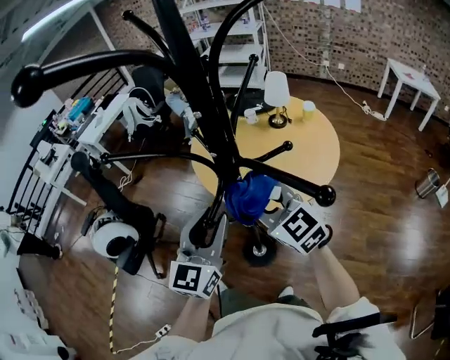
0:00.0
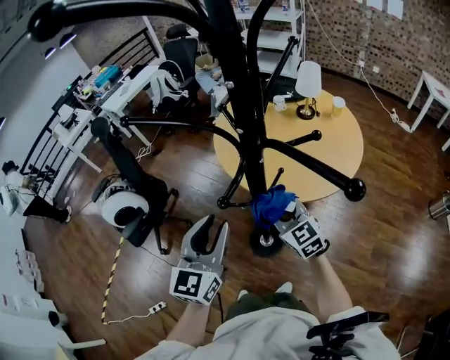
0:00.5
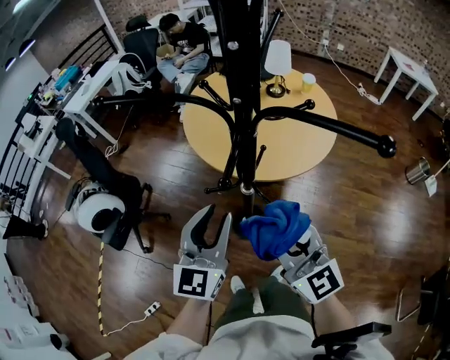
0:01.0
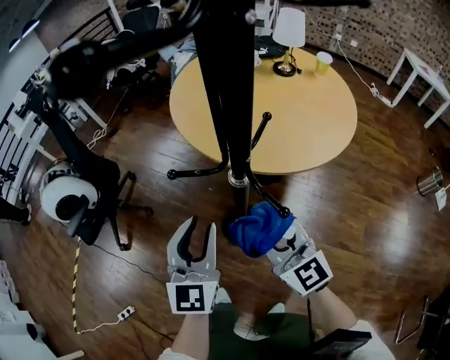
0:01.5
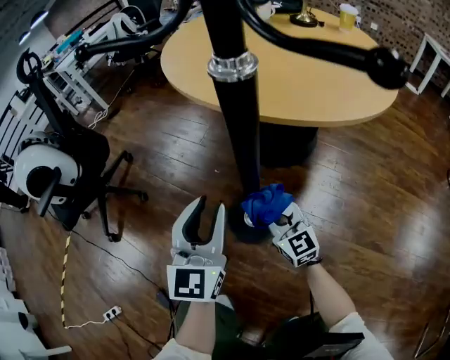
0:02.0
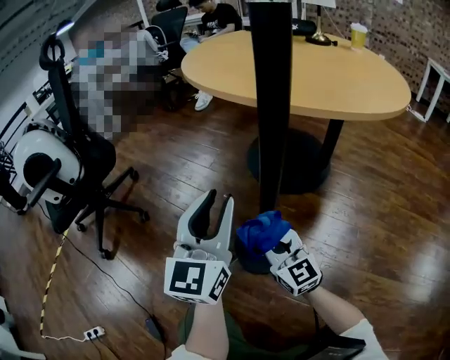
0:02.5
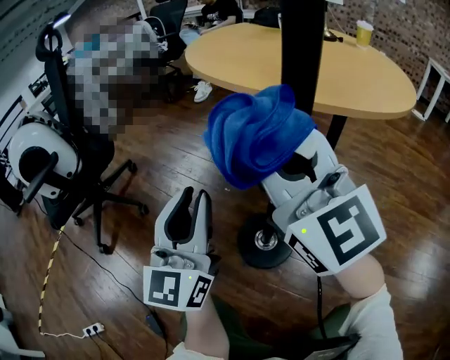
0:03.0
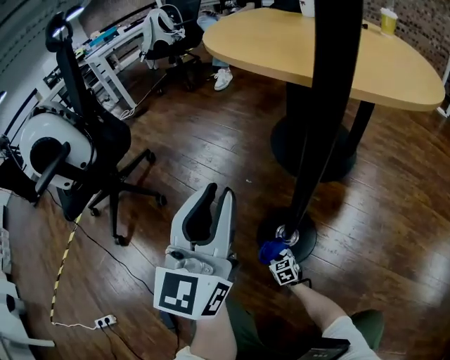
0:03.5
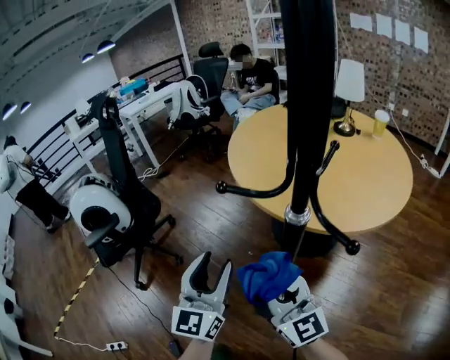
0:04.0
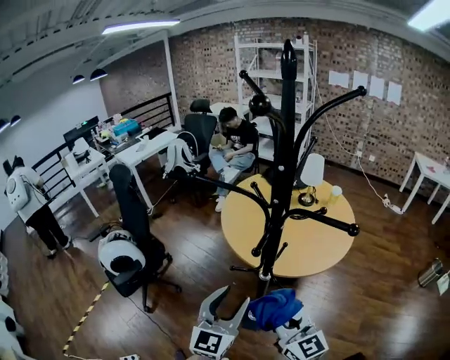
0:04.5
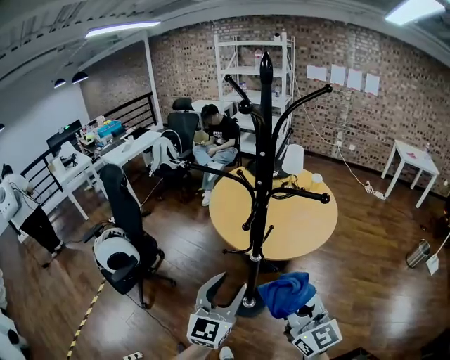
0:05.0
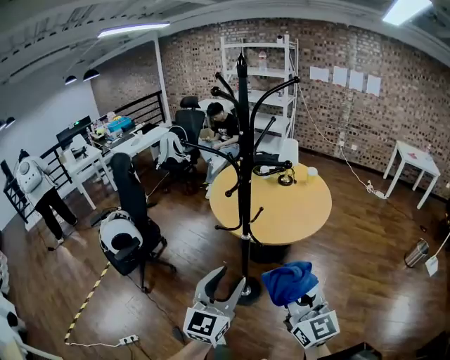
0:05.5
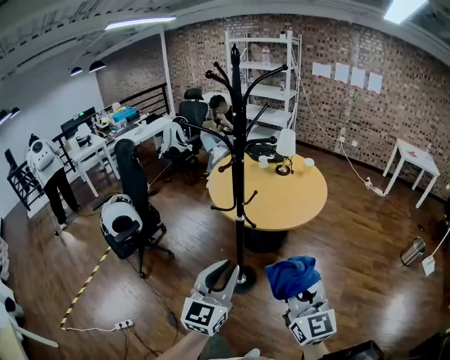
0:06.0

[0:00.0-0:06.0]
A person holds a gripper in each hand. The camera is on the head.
0:00.0 to 0:02.0: The right gripper goes up and down, about 70 cm each way, reversing 2 times. Meanwhile the left gripper goes about 50 cm downward.
0:02.0 to 0:04.0: The left gripper moves upward and to the left, roughly 15 cm. Meanwhile the right gripper swings up and down, roughly 80 cm each way, with 3 reversals, and changes its angle by roughly 20 degrees.
0:04.0 to 0:06.0: The two grippers go roughly 60 cm upward, backward and to the right. The right gripper swivels some 20 degrees. Meanwhile the left gripper closes.

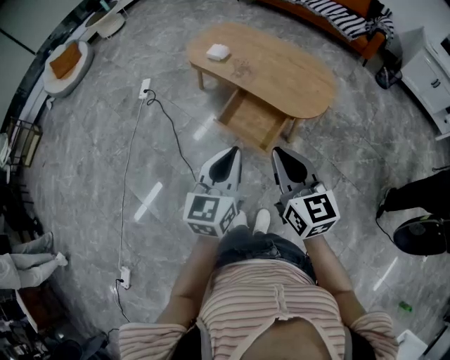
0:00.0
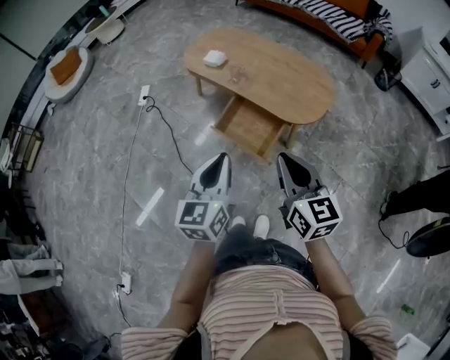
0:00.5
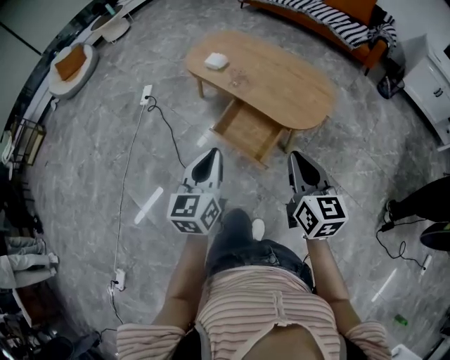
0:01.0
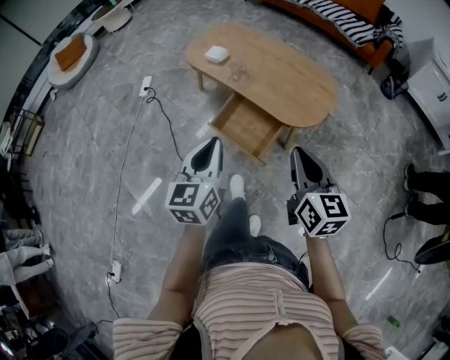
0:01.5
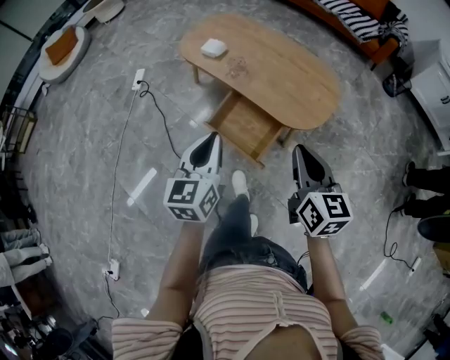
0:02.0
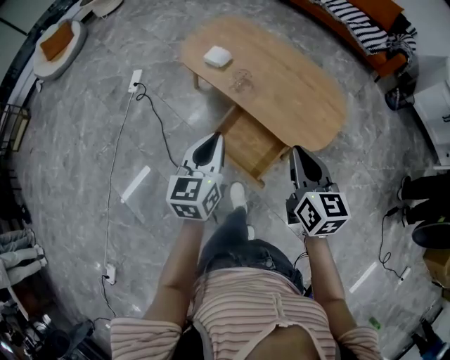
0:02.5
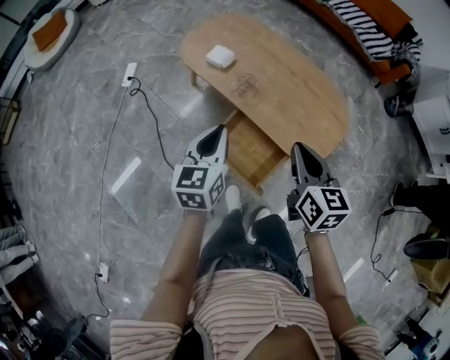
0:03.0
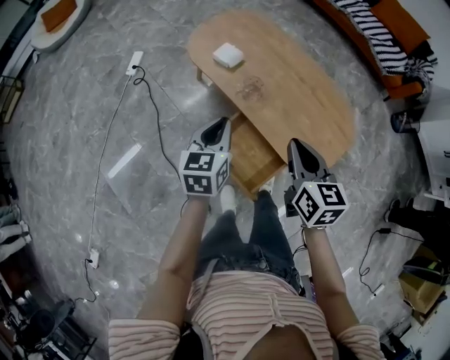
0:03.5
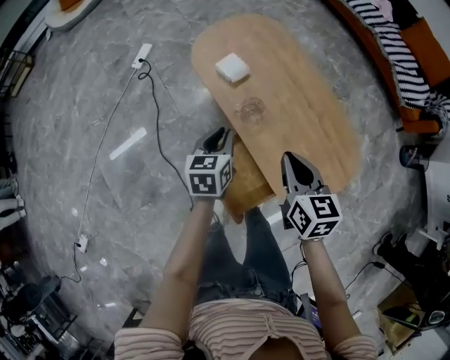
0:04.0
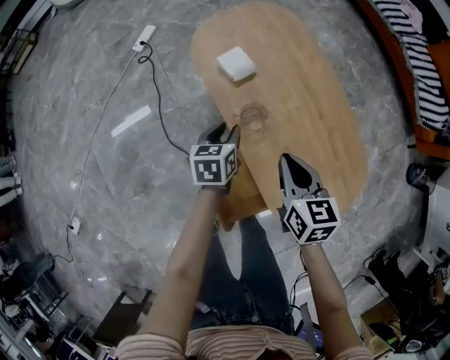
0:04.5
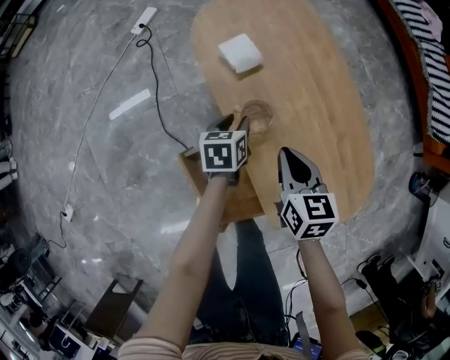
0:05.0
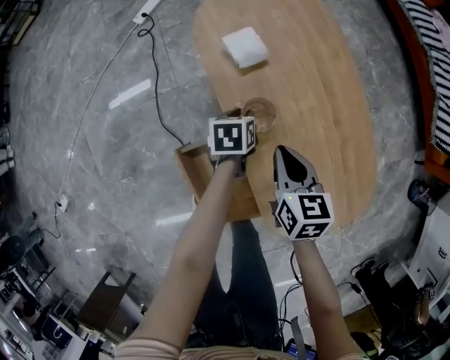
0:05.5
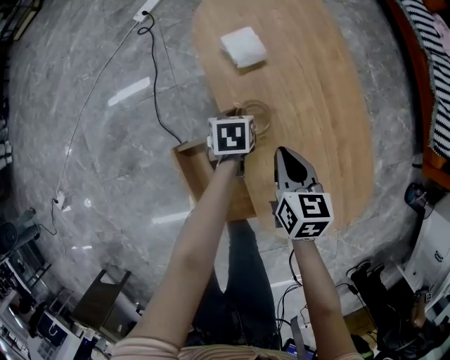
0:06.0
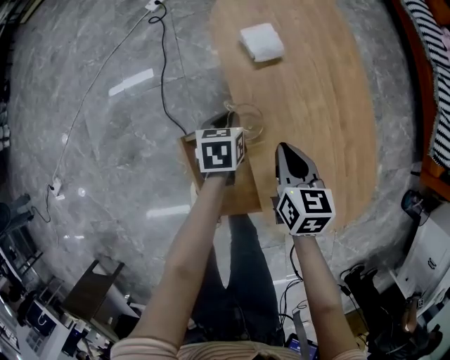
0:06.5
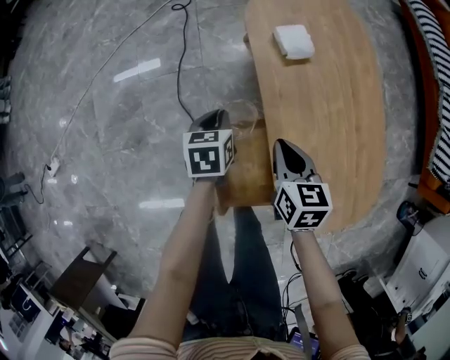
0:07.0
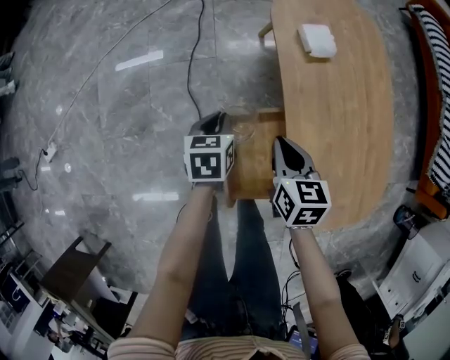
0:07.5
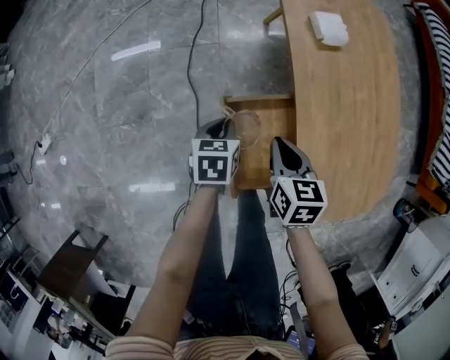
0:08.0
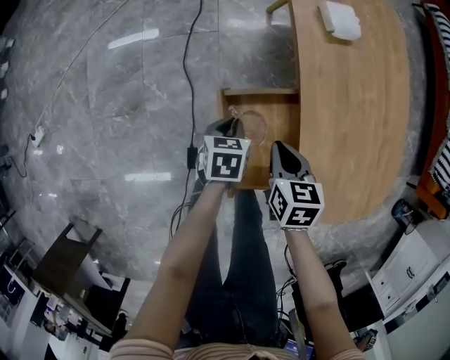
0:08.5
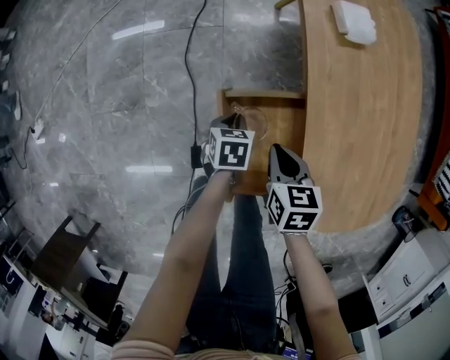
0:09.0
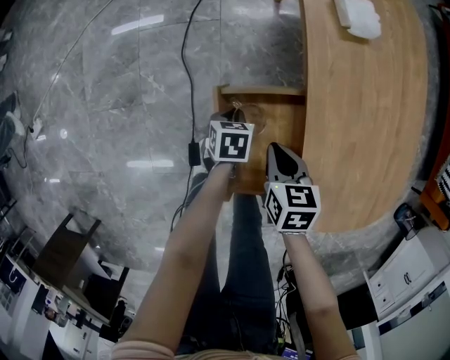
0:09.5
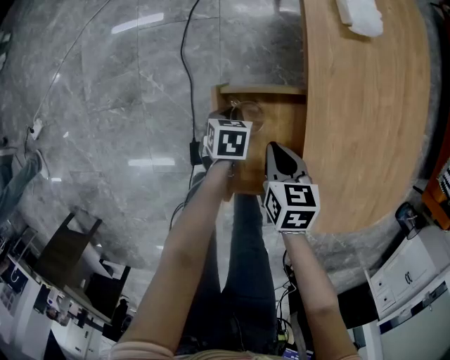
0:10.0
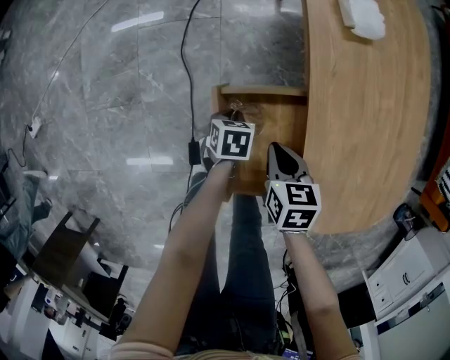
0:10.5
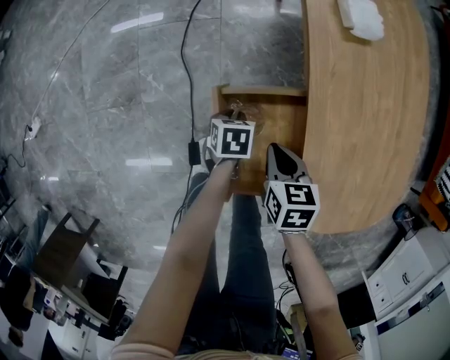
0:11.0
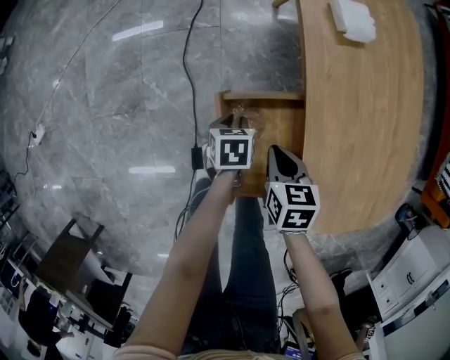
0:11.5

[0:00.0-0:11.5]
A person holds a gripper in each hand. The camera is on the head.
0:00.0 to 0:02.0: The right gripper heads forward and to the right, covering approximately 15 cm; the left gripper moves forward, roughly 15 cm.
0:02.0 to 0:04.0: The right gripper shifts about 35 cm forward, and rotates roughly 30 degrees. Meanwhile the left gripper goes roughly 40 cm forward and downward, and turns by approximately 30 degrees.
0:04.0 to 0:06.0: Both grippers travel together downward and forward, about 25 cm. The left gripper swivels approximately 30 degrees.
0:06.0 to 0:07.5: The left gripper heads to the left and backward, covering about 25 cm, while the right gripper is displaced to the left by approximately 20 cm.
0:07.5 to 0:09.5: The two grippers go approximately 15 cm downward.
0:09.5 to 0:11.5: The grippers stay close to where they were, moving slightly.

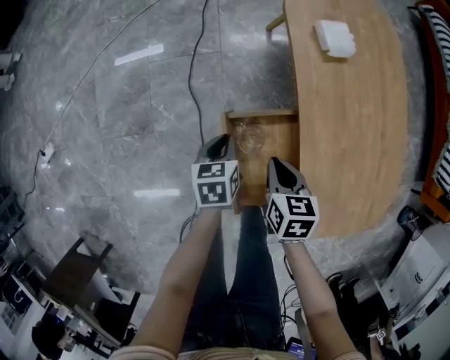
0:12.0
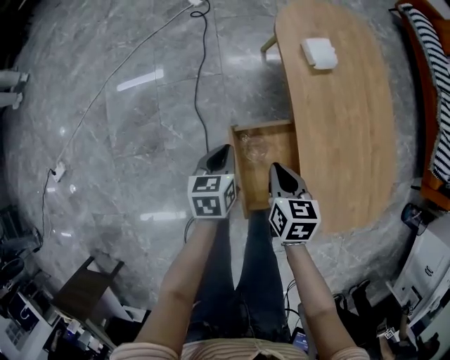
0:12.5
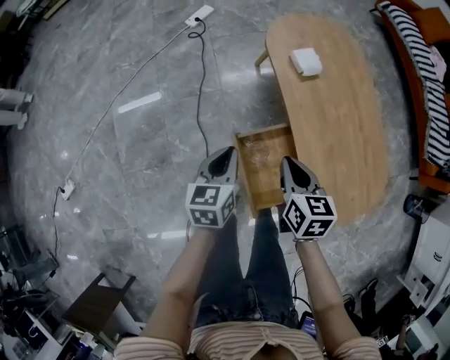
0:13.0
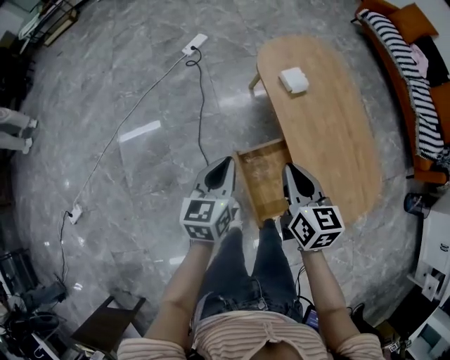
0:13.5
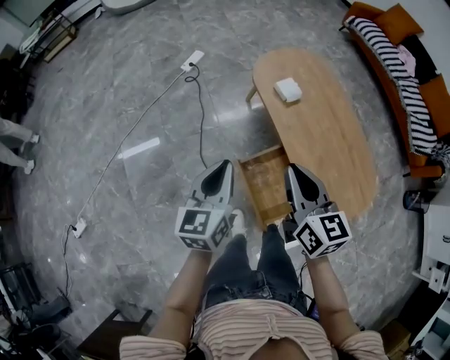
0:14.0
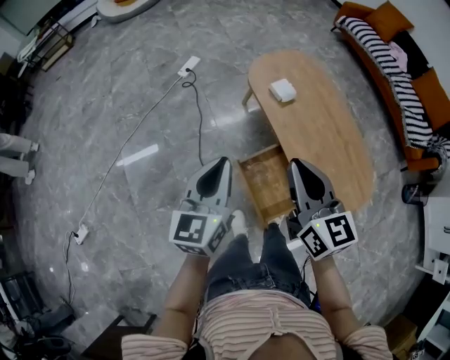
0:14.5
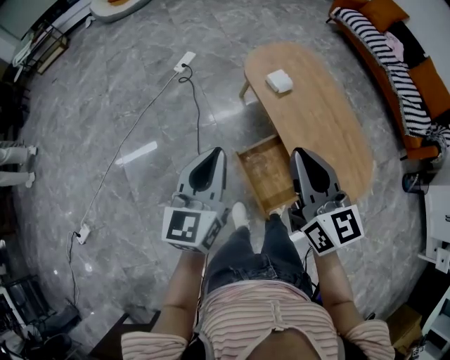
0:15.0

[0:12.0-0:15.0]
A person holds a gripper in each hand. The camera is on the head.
0:12.0 to 0:13.5: Both grippers travel together upward, about 30 cm. The right gripper turns by some 30 degrees; the left gripper swivels approximately 30 degrees.
0:13.5 to 0:15.0: The grippers both shift upward by some 15 cm. The left gripper changes its angle by about 20 degrees, while the right gripper changes its angle by roughly 20 degrees.

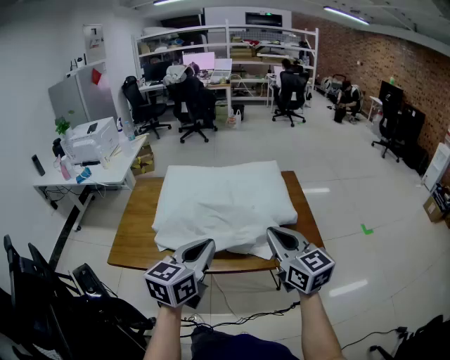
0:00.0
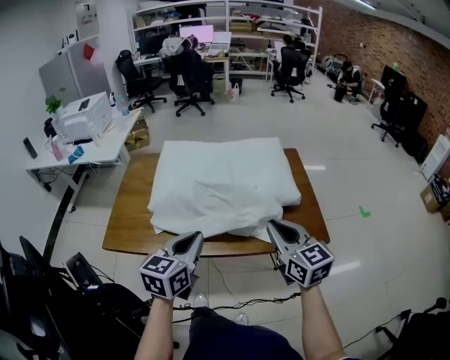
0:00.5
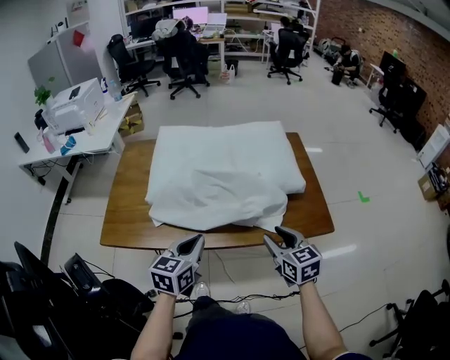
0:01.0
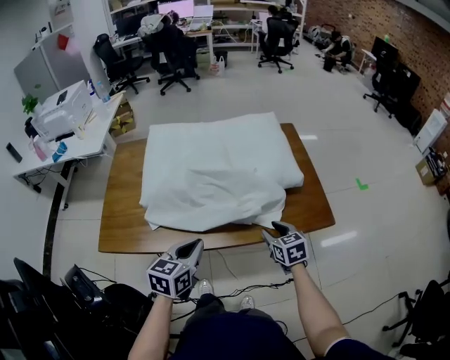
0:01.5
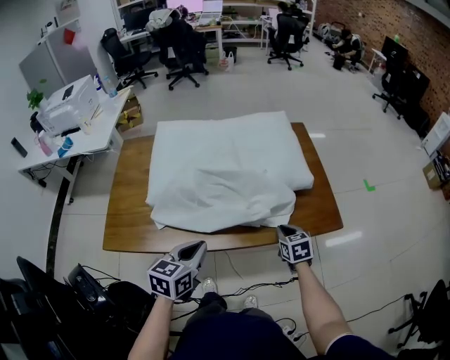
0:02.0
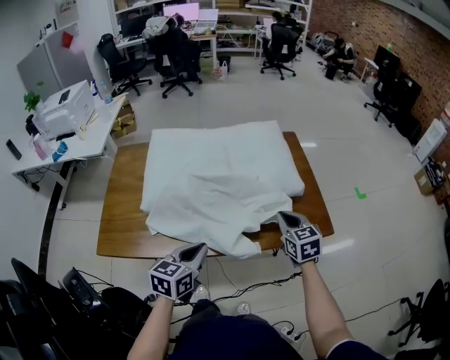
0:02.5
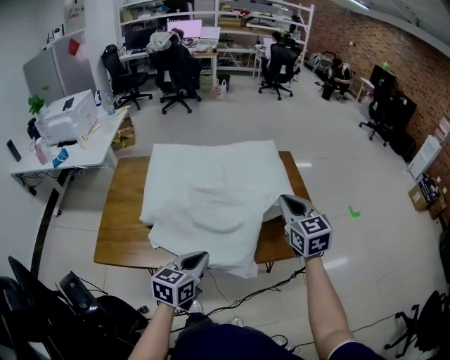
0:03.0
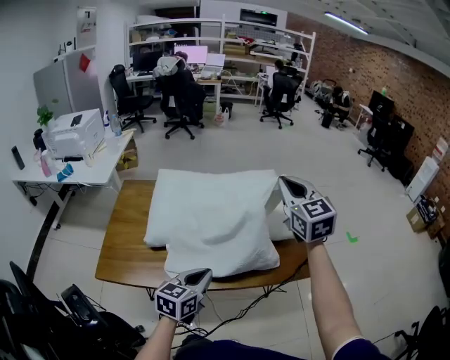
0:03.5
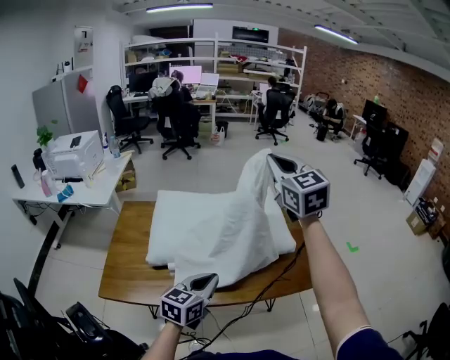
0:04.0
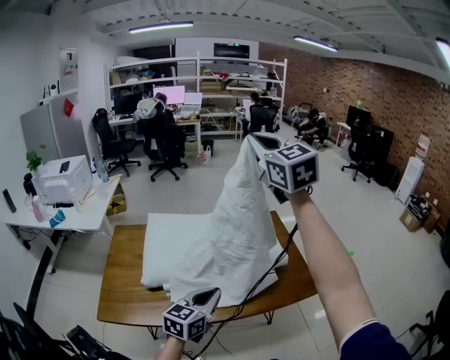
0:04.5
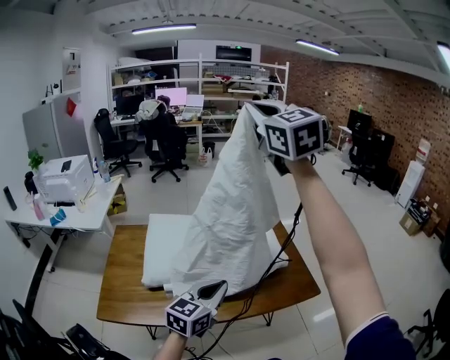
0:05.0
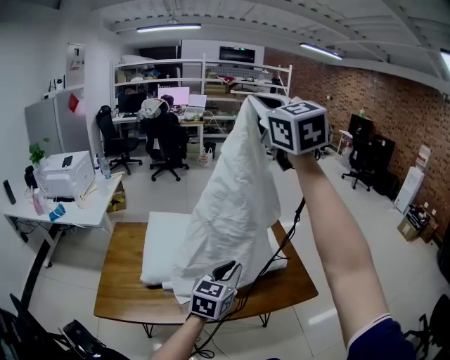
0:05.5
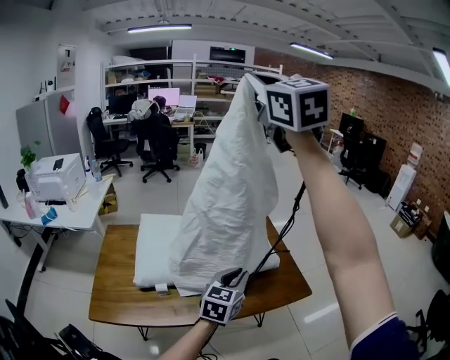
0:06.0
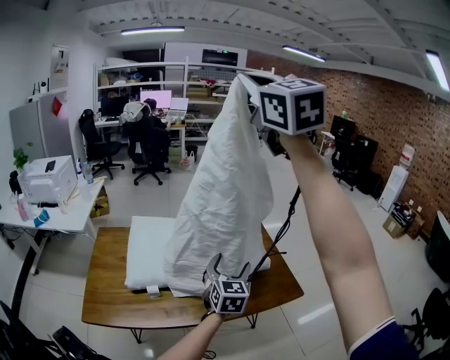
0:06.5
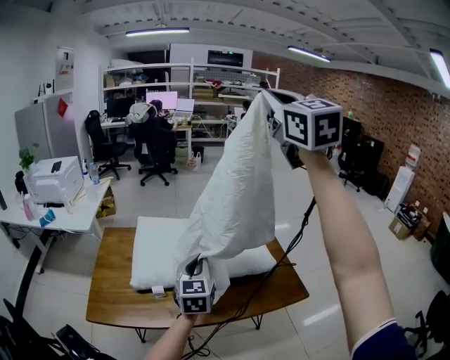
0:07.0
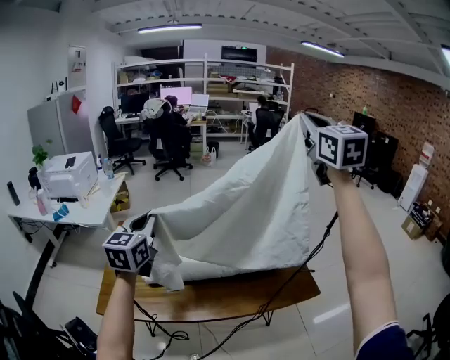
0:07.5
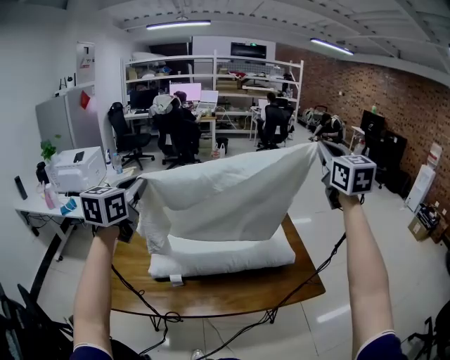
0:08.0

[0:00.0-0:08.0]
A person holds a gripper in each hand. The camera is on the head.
0:00.0 to 0:02.0: The right gripper heads downward, covering roughly 30 cm, points its fingers some 40 degrees further downward, and opens and closes again. The left gripper goes approximately 20 cm downward and to the left.
0:02.0 to 0:04.0: The left gripper heads upward and forward, covering approximately 10 cm. The right gripper moves upward, some 50 cm, and tilts its fingers roughly 40 degrees upward.
0:04.0 to 0:06.0: The left gripper shifts roughly 15 cm to the right, forward and upward. The right gripper moves upward, roughly 30 cm.
0:06.0 to 0:08.0: The left gripper heads to the left and upward, covering some 40 cm, turns by roughly 20 degrees, and opens, then closes again. The right gripper travels to the right and downward by about 25 cm, and swivels approximately 20 degrees.
